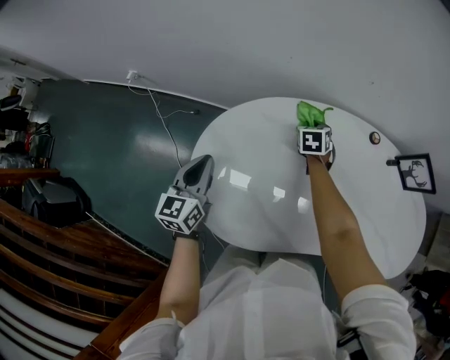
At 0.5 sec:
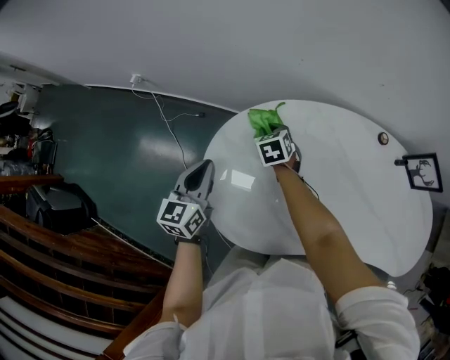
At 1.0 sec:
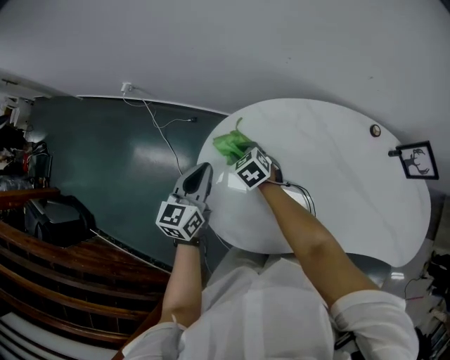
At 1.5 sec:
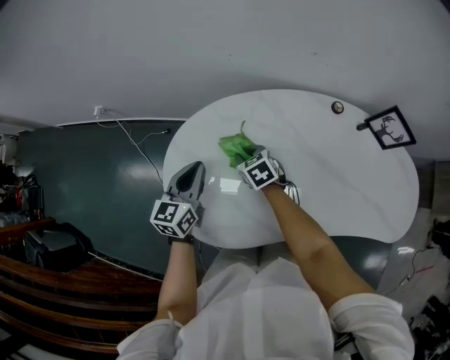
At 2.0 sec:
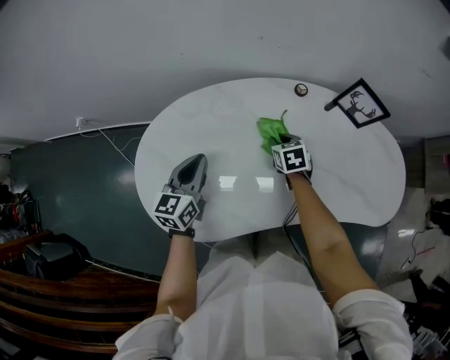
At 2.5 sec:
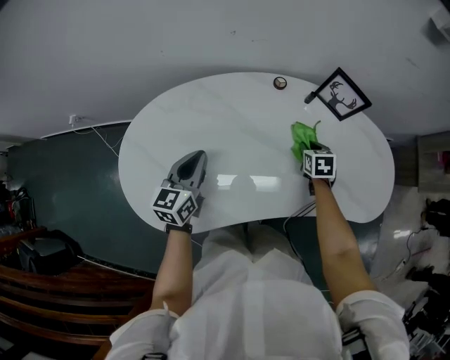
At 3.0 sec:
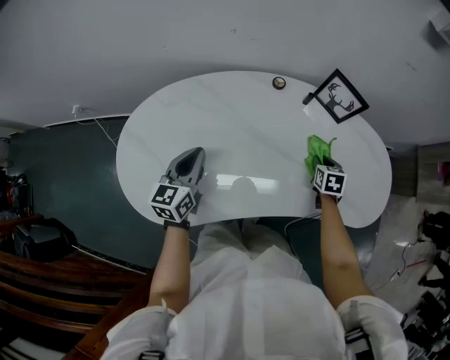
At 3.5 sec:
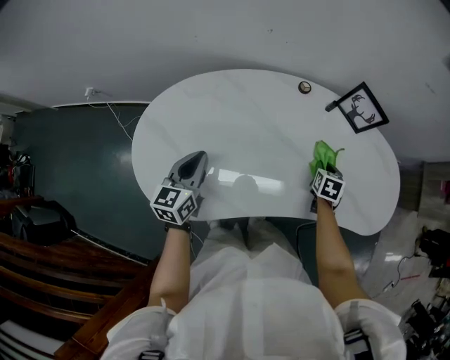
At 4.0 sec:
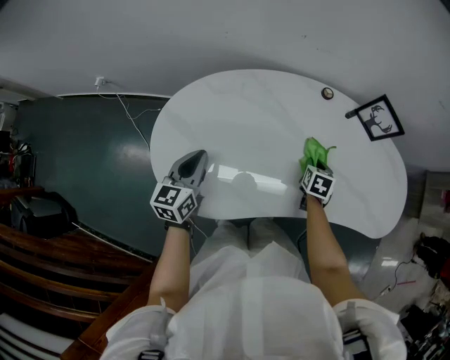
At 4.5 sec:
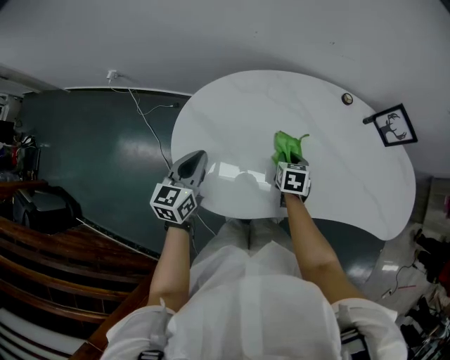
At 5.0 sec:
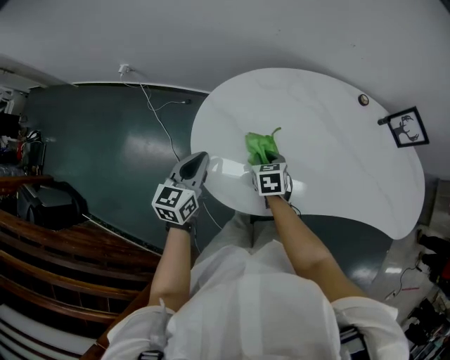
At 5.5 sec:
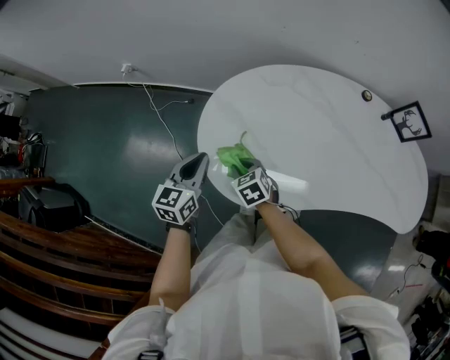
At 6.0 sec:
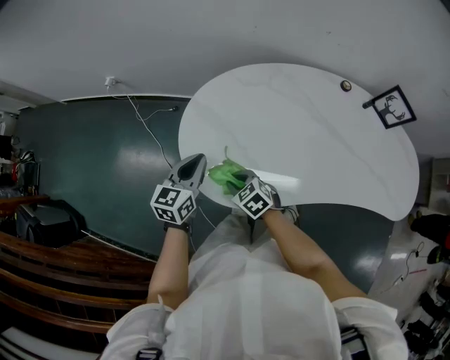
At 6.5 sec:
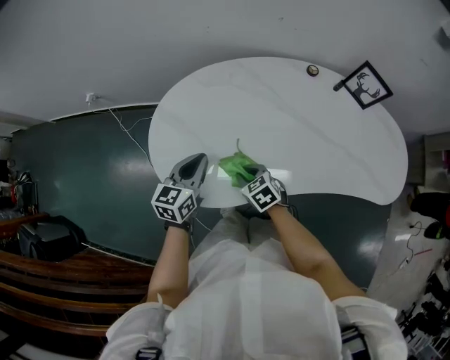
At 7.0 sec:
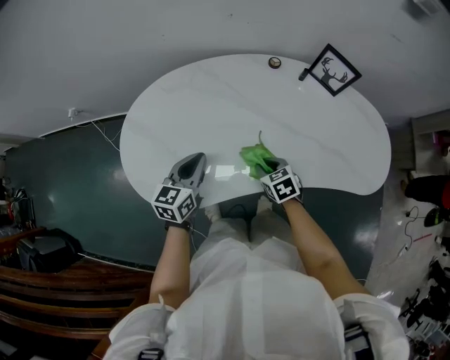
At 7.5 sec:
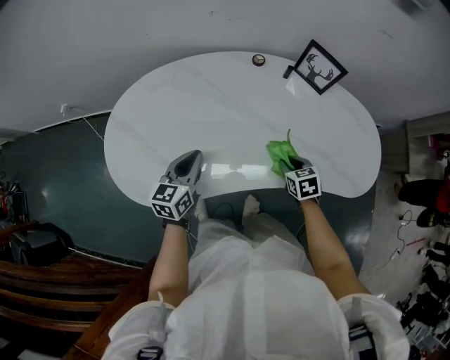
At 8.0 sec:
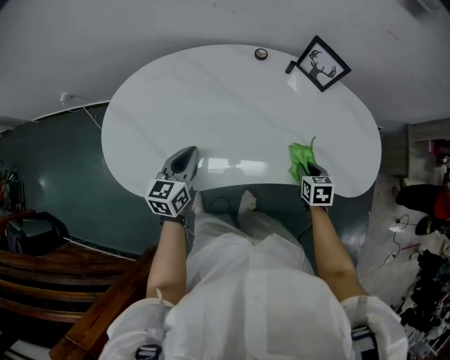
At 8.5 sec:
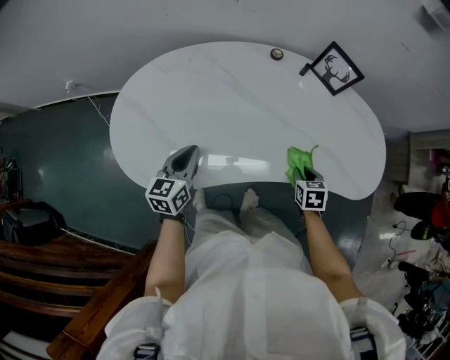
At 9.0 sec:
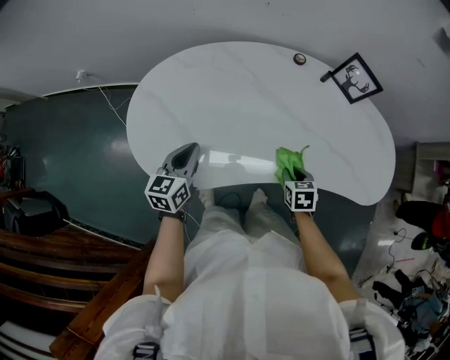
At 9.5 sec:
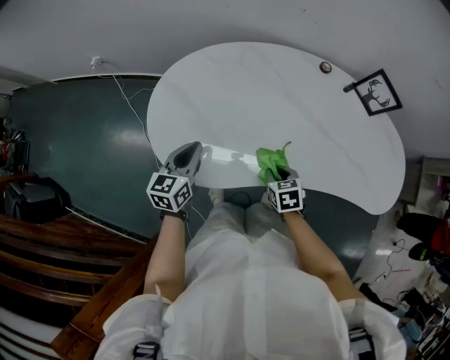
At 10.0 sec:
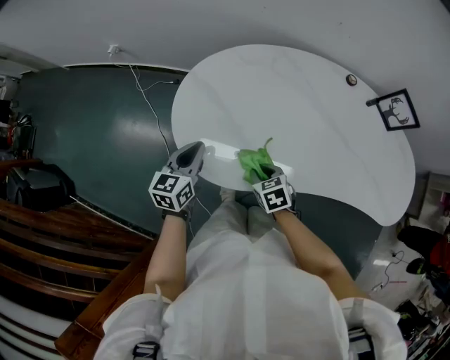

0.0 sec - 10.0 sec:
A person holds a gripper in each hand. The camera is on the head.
0.0 sec - 2.0 sec: The left gripper ends up about 20 cm from where it was; the right gripper moves some 20 cm.
2.0 sec - 4.0 sec: The left gripper is displaced backward by roughly 10 cm, and reaches some 10 cm to the right, then returns. The right gripper is displaced to the right and backward by approximately 15 cm, and swivels approximately 20 degrees.
4.0 sec - 6.0 sec: The left gripper ends up about 15 cm from where it was; the right gripper ends up some 50 cm from where it was, and rotates some 60 degrees.
6.0 sec - 8.0 sec: The left gripper shifts by roughly 30 cm. Meanwhile the right gripper shifts by roughly 60 cm, and turns by roughly 50 degrees.
8.0 sec - 10.0 sec: The right gripper ends up some 50 cm from where it was, and swivels some 30 degrees; the left gripper changes place by roughly 25 cm.

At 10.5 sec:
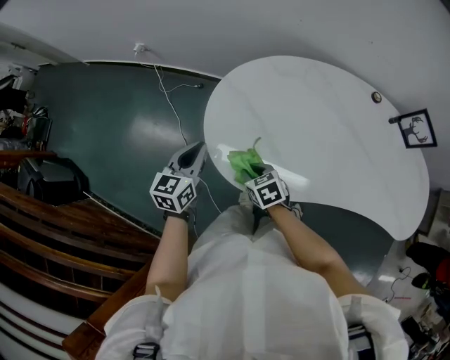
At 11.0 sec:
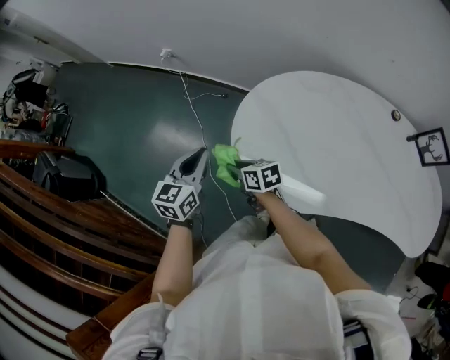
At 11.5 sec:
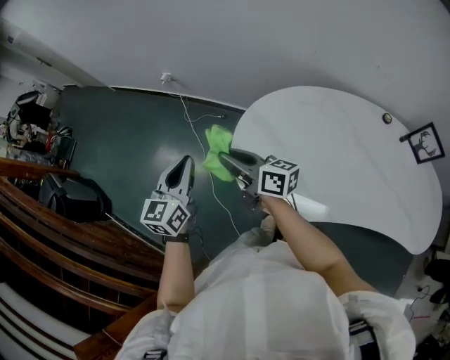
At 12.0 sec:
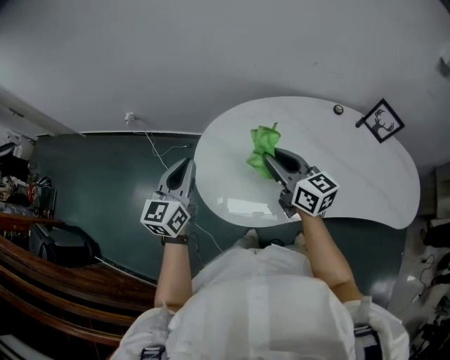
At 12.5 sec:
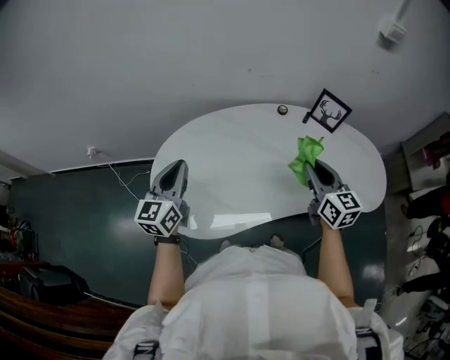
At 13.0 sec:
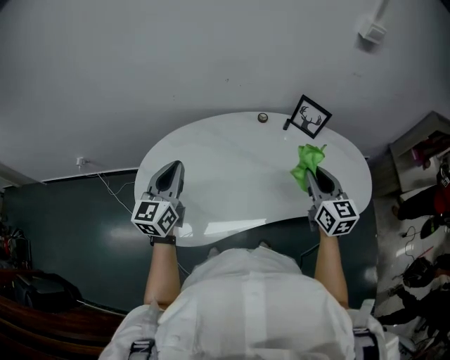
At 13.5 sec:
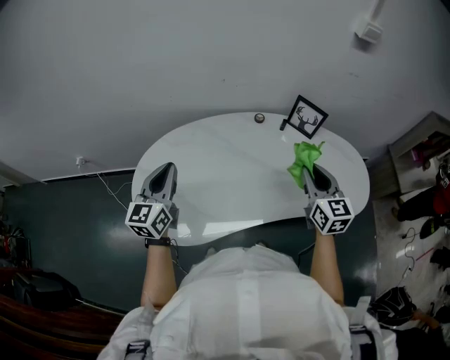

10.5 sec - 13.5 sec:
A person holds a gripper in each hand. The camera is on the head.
10.5 sec - 12.0 sec: The left gripper moves upward, about 15 cm; the right gripper travels upward and to the right by about 30 cm, and tips its fingers upward by roughly 50 degrees.
12.0 sec - 13.5 sec: The right gripper changes place by some 40 cm, and swivels approximately 40 degrees. Meanwhile the left gripper moves some 20 cm.

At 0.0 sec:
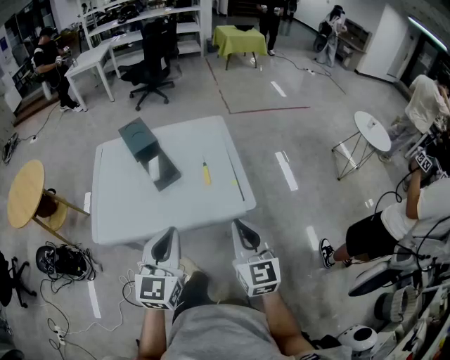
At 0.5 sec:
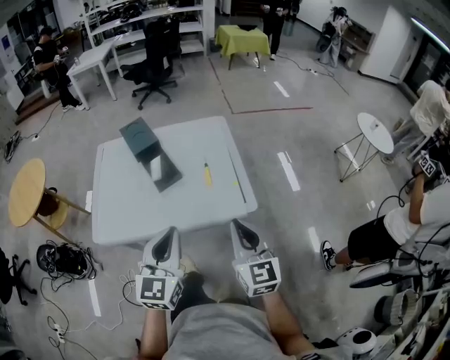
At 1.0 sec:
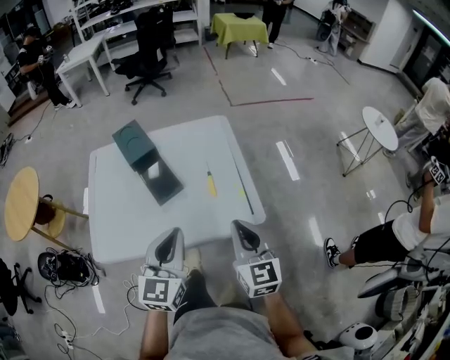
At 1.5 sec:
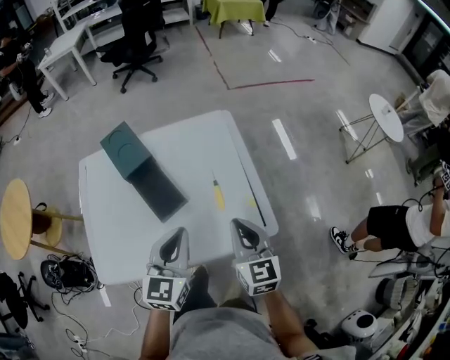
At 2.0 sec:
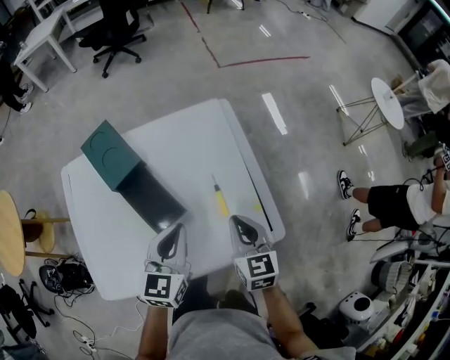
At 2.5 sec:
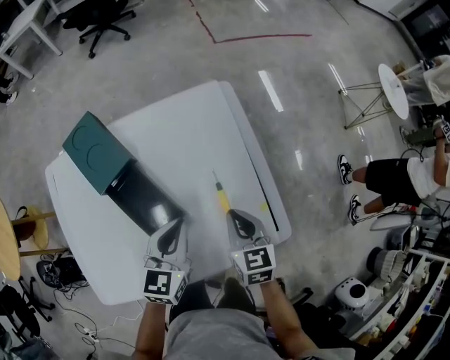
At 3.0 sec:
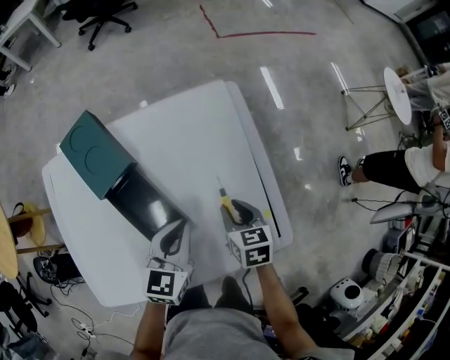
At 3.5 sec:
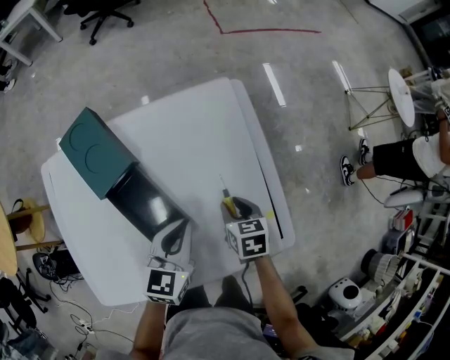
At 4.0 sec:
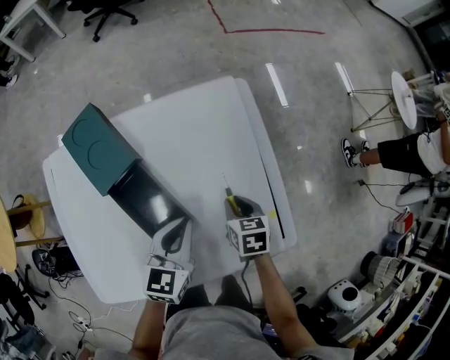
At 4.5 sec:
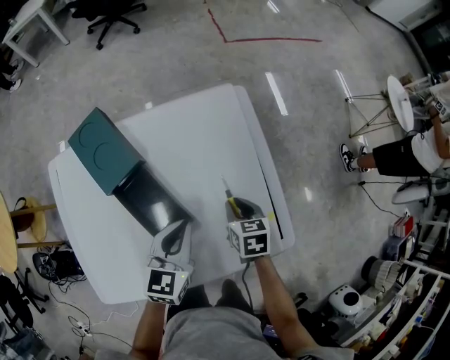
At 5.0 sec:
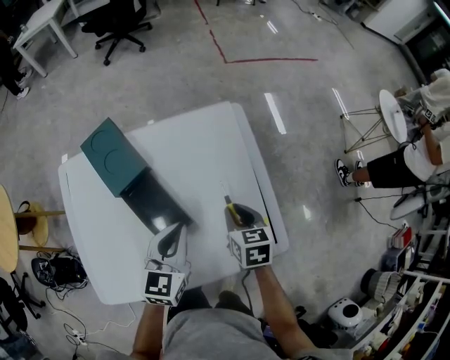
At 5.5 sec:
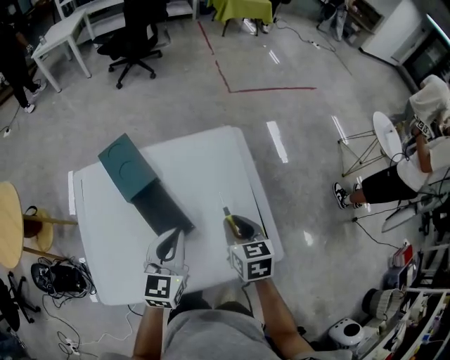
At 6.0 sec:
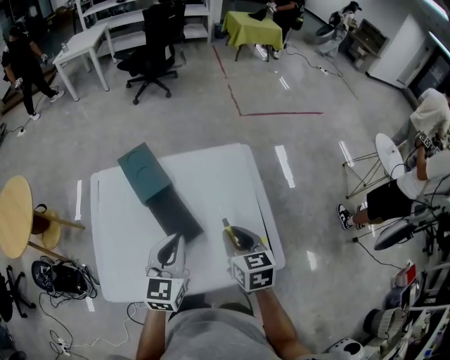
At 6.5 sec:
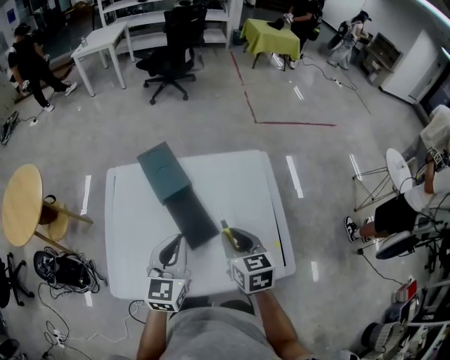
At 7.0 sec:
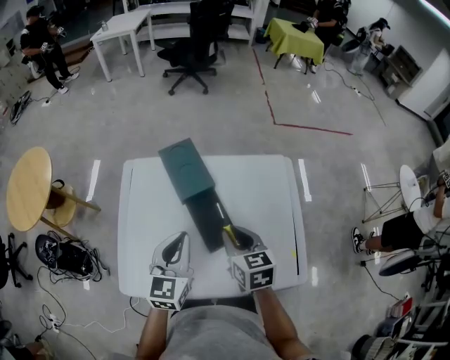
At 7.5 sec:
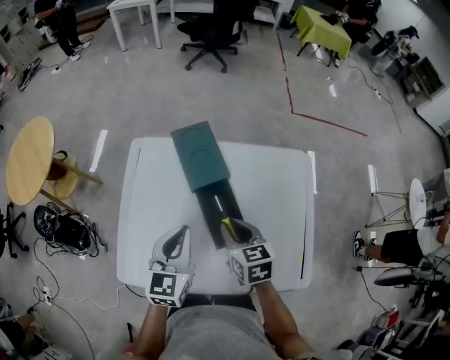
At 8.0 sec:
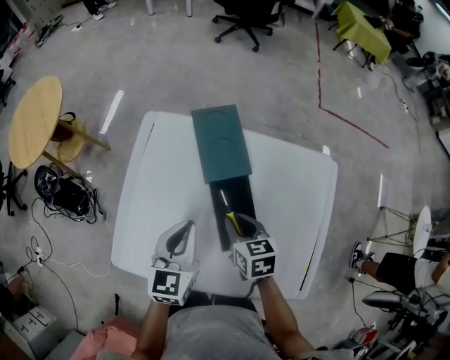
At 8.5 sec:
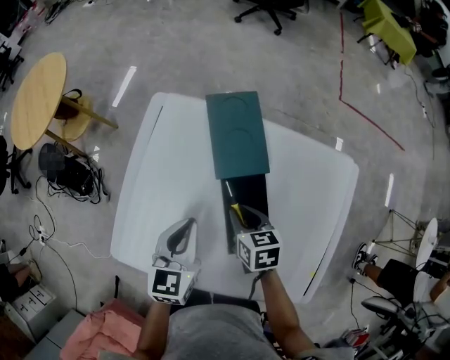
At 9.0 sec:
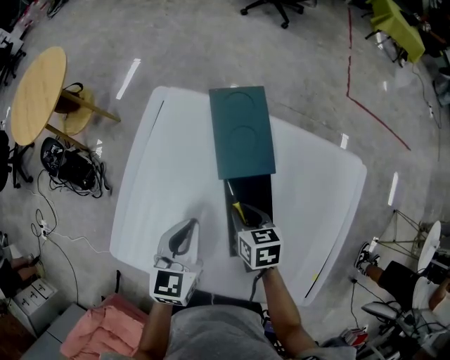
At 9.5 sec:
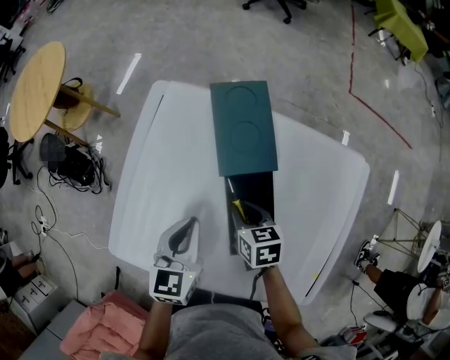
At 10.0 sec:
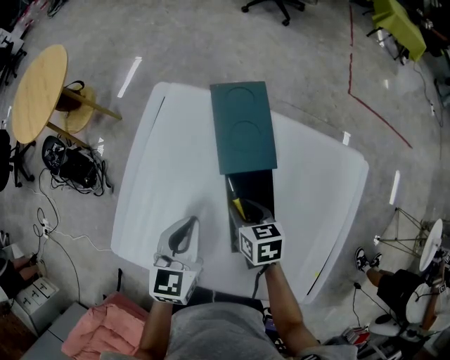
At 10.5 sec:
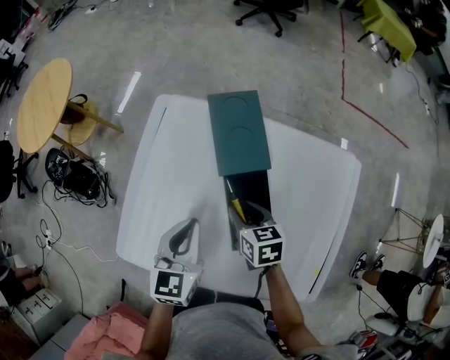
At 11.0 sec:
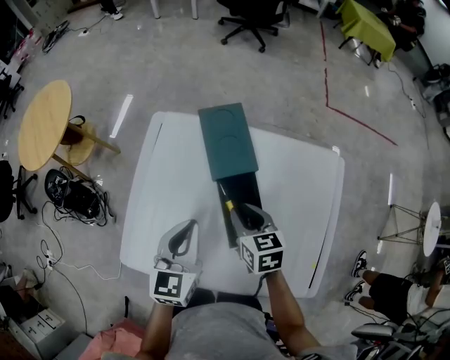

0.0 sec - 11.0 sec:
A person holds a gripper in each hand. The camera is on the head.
0.0 sec - 2.0 sec: Both grippers move forward and downward, approximately 30 cm. The left gripper turns by approximately 20 degrees. Meanwhile the right gripper rotates some 20 degrees.
2.0 sec - 3.5 sec: The left gripper heads downward and forward, covering some 10 cm; the right gripper goes approximately 15 cm downward and forward, rotates some 30 degrees, and opens.
3.5 sec - 5.5 sec: The right gripper moves upward, some 15 cm, while the left gripper shifts about 10 cm upward.
5.5 sec - 7.5 sec: The two grippers go some 20 cm to the left. The right gripper changes its angle by roughly 20 degrees.
7.5 sec - 9.0 sec: Both grippers move downward, approximately 15 cm.
9.0 sec - 11.0 sec: The grippers both shift upward by about 10 cm.

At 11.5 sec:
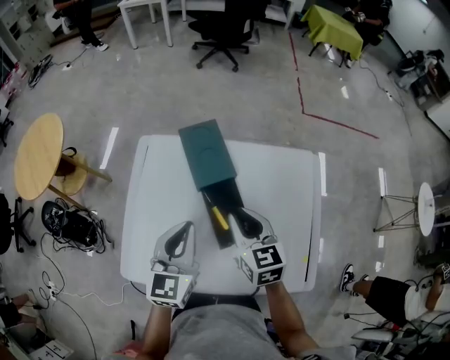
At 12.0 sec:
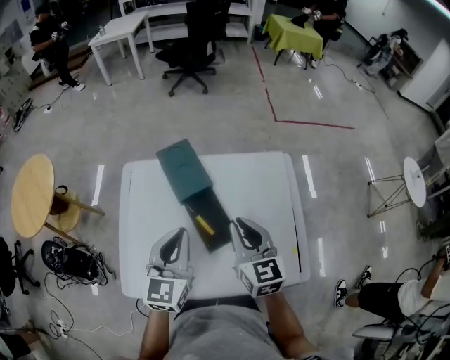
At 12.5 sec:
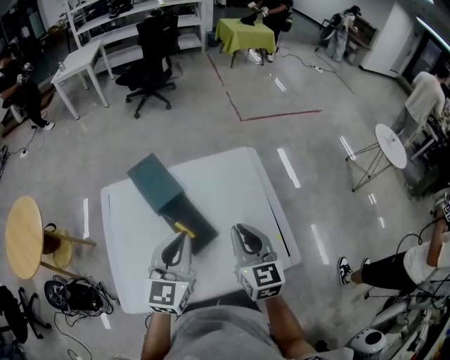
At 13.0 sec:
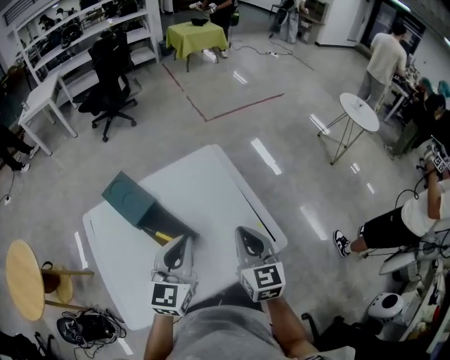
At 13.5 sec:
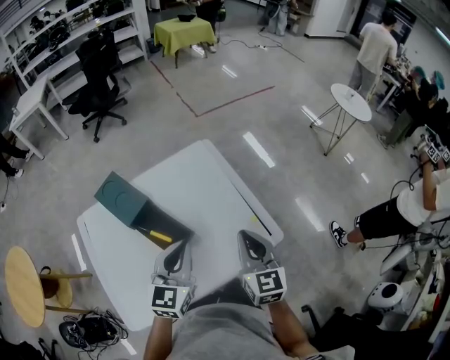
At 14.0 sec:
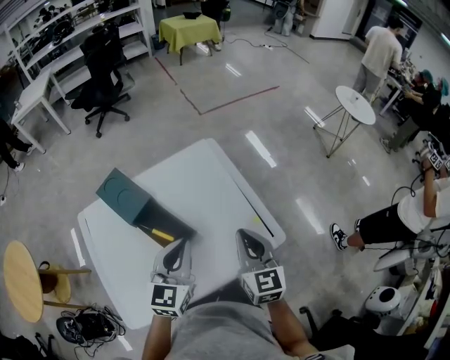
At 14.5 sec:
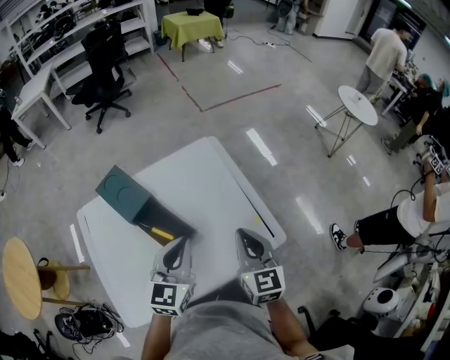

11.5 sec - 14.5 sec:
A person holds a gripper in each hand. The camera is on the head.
11.5 sec - 13.0 sec: The left gripper changes place by some 20 cm, and turns by approximately 40 degrees. The right gripper shifts by approximately 25 cm, and turns by some 40 degrees.
13.0 sec - 14.5 sec: The grippers stay close to where they were, moving slightly.
